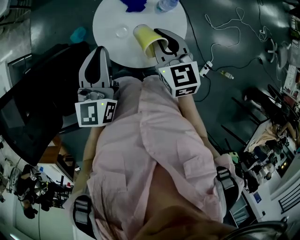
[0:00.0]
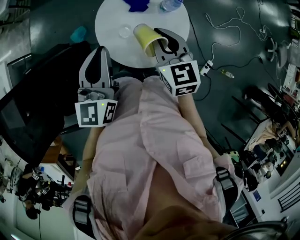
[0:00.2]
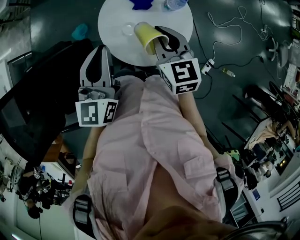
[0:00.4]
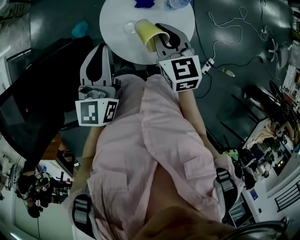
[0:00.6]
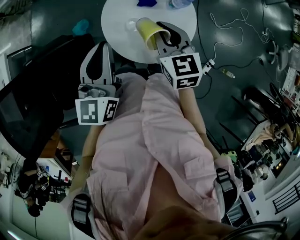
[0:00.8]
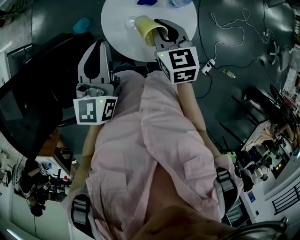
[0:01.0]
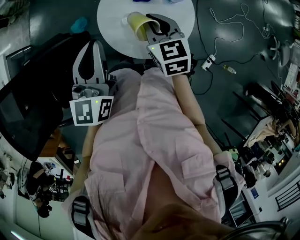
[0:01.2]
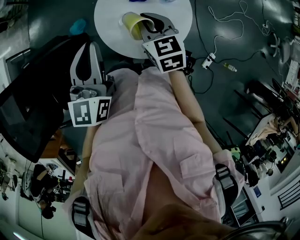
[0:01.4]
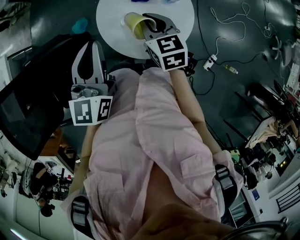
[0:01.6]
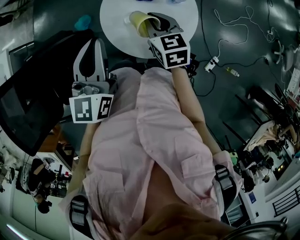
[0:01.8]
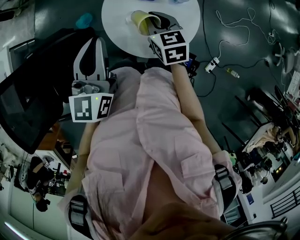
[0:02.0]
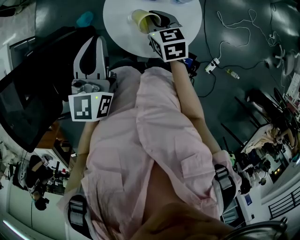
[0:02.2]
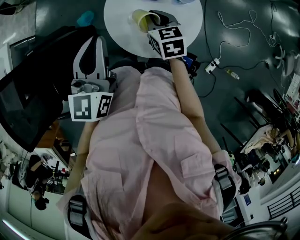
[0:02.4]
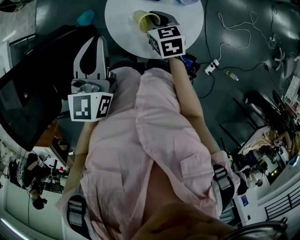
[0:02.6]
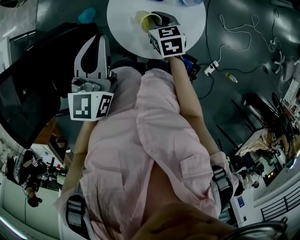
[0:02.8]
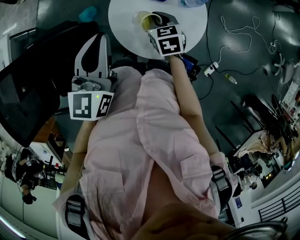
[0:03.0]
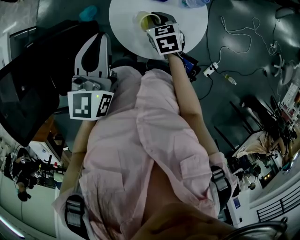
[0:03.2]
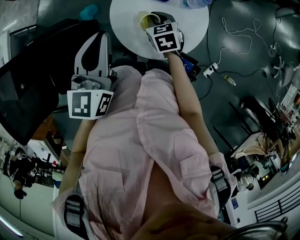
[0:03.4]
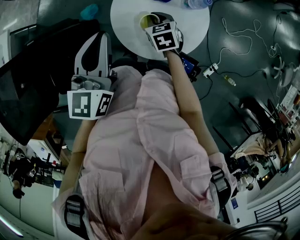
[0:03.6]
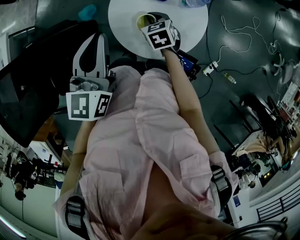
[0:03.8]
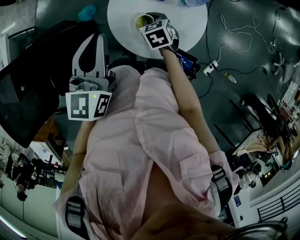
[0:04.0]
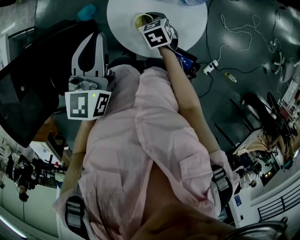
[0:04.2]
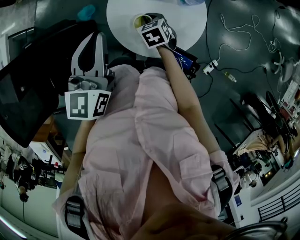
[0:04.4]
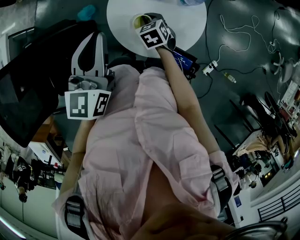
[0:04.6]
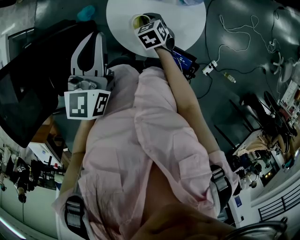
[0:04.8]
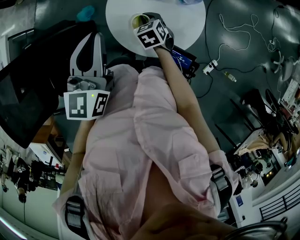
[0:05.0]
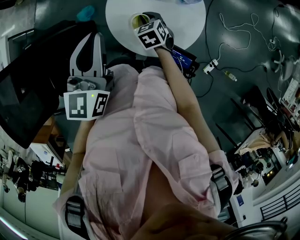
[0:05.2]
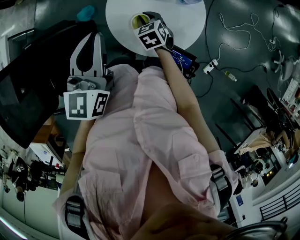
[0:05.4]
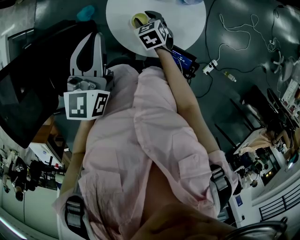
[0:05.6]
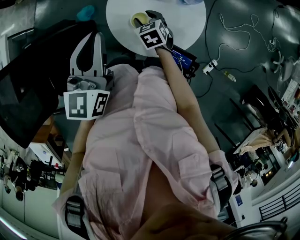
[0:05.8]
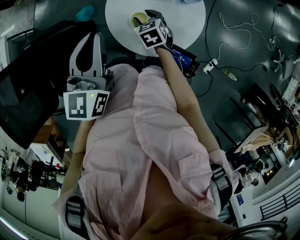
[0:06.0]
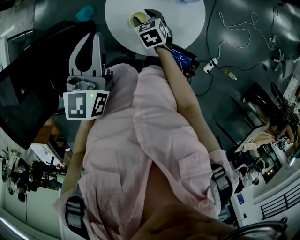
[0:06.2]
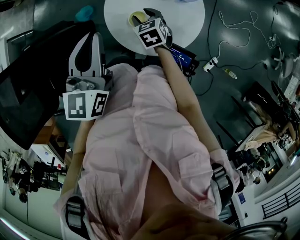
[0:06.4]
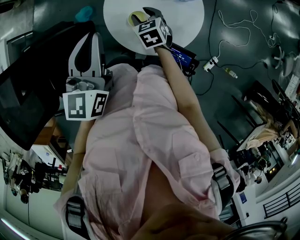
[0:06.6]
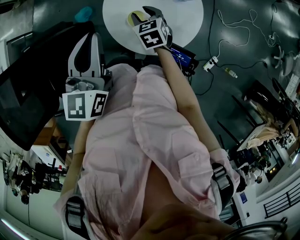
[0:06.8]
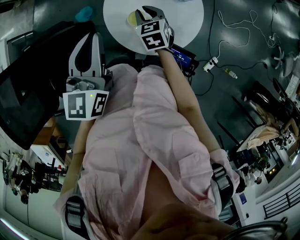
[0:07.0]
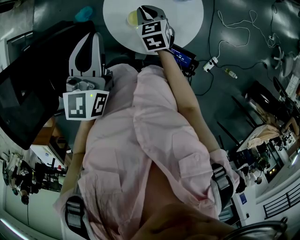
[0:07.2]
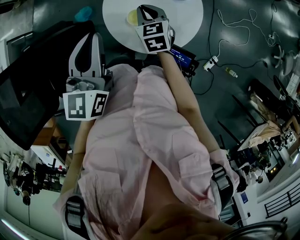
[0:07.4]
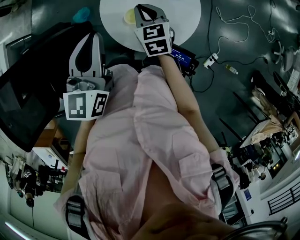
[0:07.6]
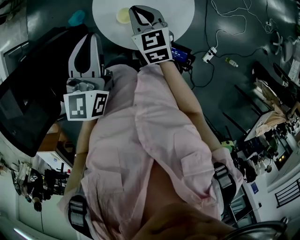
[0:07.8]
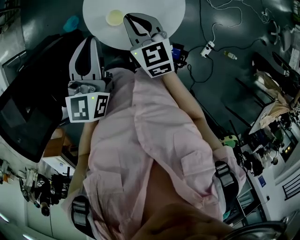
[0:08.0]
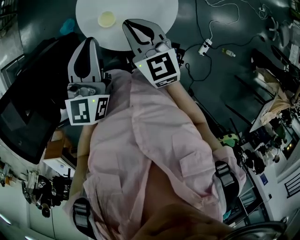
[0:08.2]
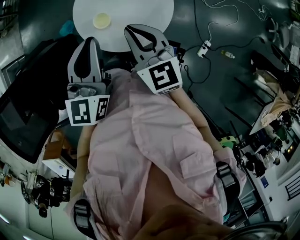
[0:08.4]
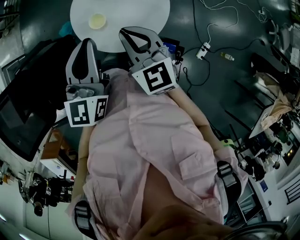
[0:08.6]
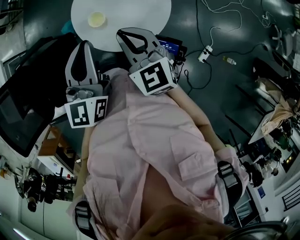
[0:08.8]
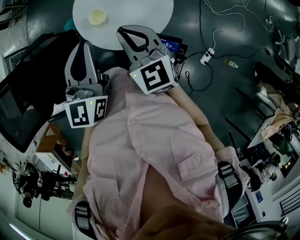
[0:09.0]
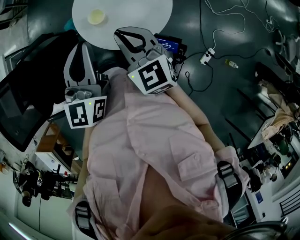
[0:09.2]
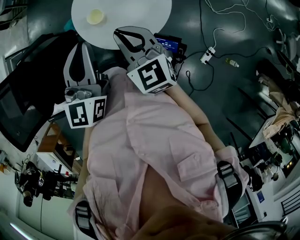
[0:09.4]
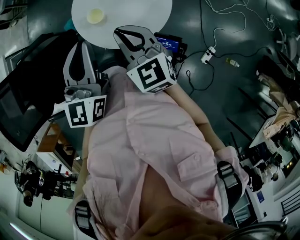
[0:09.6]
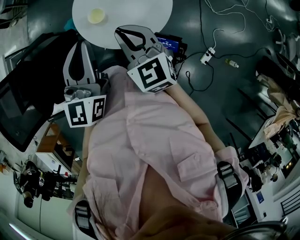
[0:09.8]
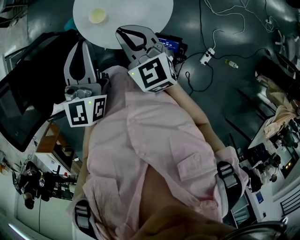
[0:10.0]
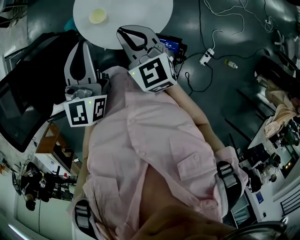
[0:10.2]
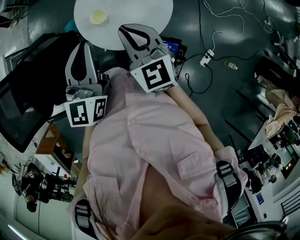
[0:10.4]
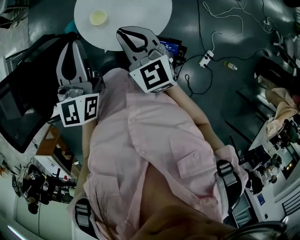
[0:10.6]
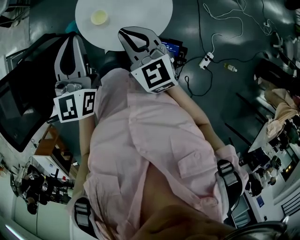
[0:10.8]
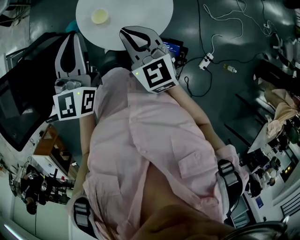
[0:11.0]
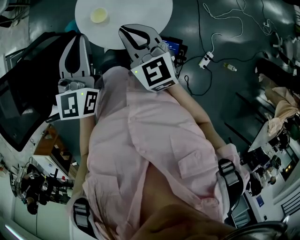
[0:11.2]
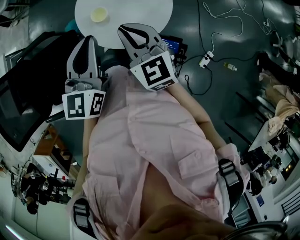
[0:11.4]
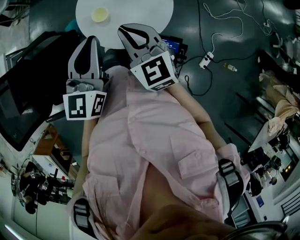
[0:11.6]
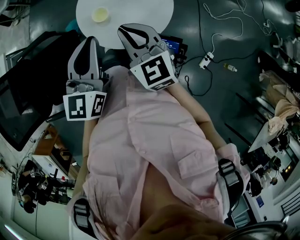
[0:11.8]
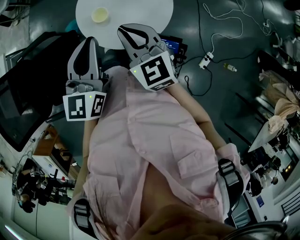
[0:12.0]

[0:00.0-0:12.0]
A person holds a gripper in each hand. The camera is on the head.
0:00.0 to 0:01.6: The right gripper is displaced downward by some 5 cm.
0:01.6 to 0:03.0: The right gripper moves downward, about 10 cm.
0:03.0 to 0:04.4: The right gripper travels downward by approximately 5 cm.
0:04.4 to 0:06.0: The right gripper opens up.
0:06.0 to 0:07.6: The right gripper moves upward, roughly 10 cm, swivels about 20 degrees, and closes.
0:07.6 to 0:09.0: The left gripper moves to the right and backward, about 15 cm. Meanwhile the right gripper heads backward, upward and to the right, covering approximately 20 cm.
0:09.0 to 0:10.4: Both grippers stay put.
0:10.4 to 0:12.0: There are only small adjustments of the grippers.

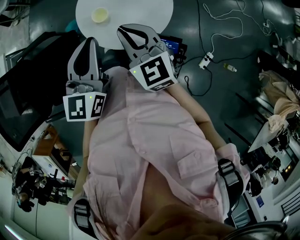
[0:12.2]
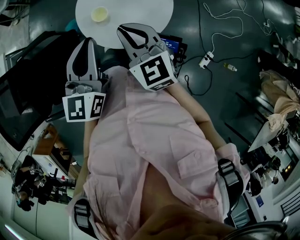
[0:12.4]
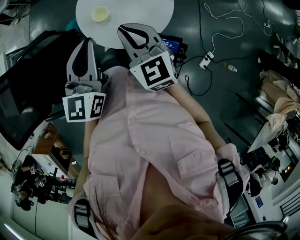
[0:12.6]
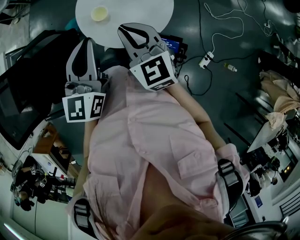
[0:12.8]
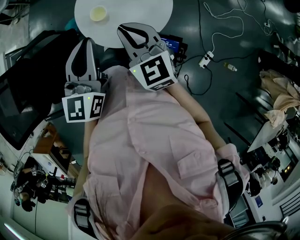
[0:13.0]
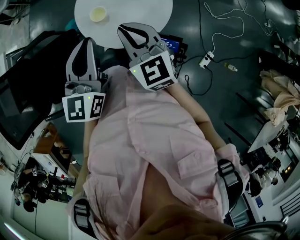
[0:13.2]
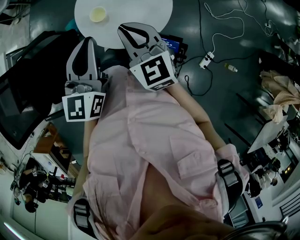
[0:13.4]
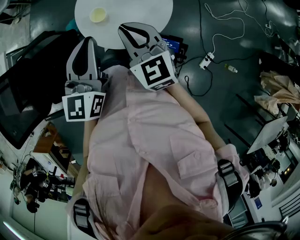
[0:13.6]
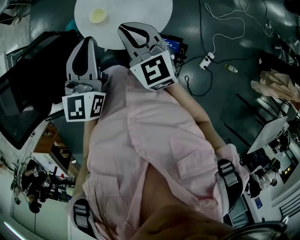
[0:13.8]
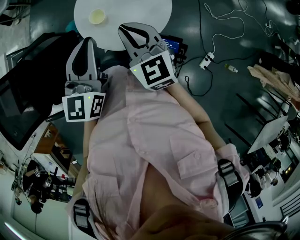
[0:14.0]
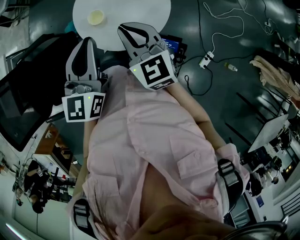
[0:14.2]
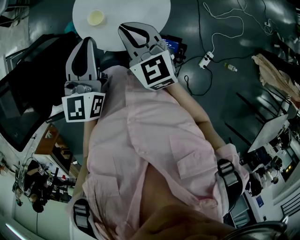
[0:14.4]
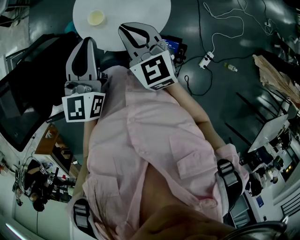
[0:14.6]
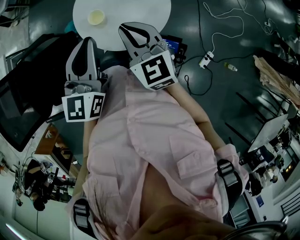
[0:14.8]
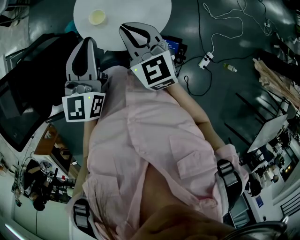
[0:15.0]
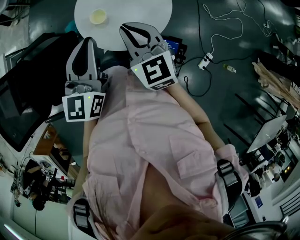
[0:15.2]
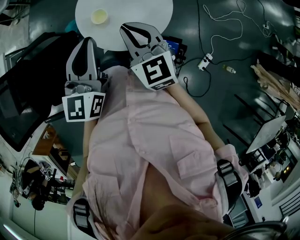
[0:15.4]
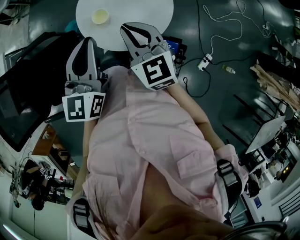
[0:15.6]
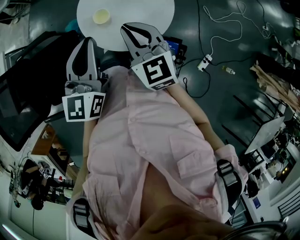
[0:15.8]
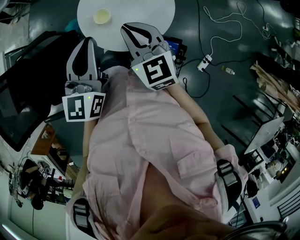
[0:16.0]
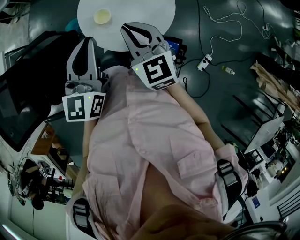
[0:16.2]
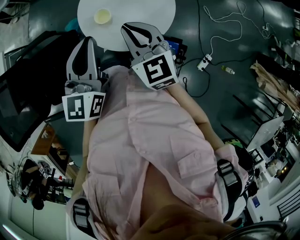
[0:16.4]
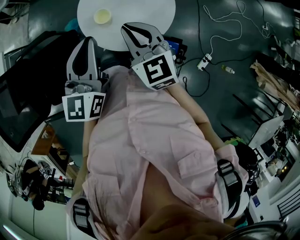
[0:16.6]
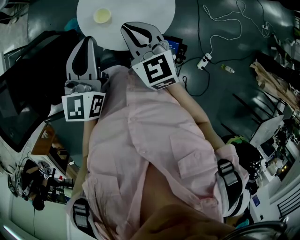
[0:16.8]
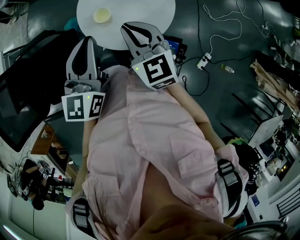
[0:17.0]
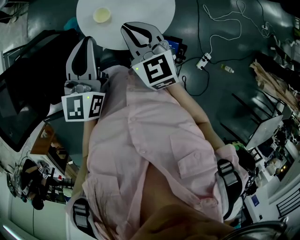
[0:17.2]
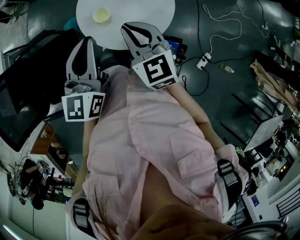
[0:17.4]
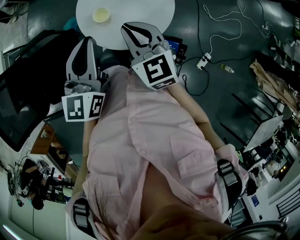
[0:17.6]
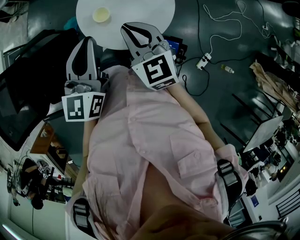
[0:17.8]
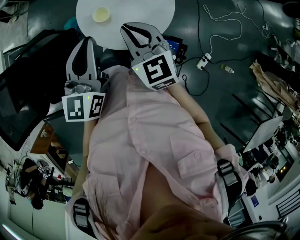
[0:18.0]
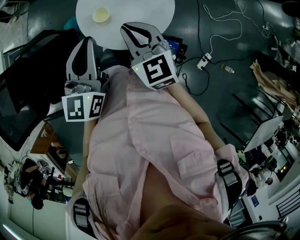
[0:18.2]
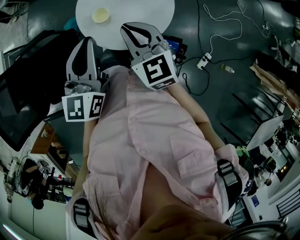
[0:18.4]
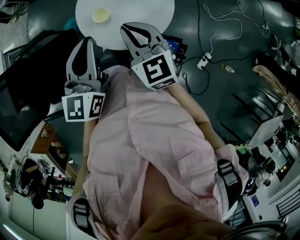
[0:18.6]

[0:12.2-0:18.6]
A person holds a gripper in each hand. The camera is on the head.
0:12.2 to 0:13.8: The two grippers keep their place.
0:13.8 to 0:15.4: Both grippers stay about where they are.
0:15.4 to 0:18.6: Both grippers stay about where they are.

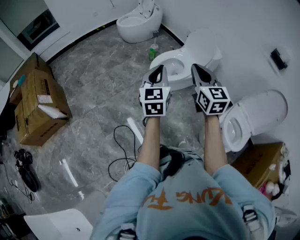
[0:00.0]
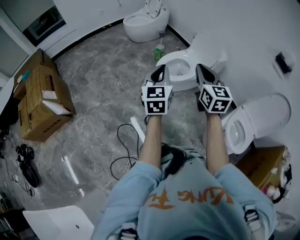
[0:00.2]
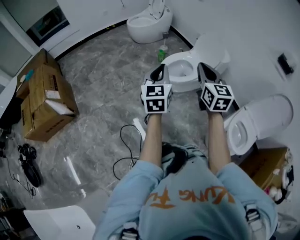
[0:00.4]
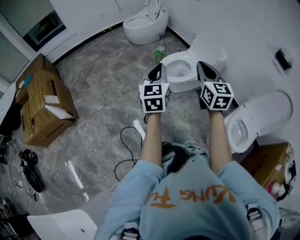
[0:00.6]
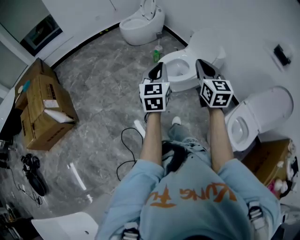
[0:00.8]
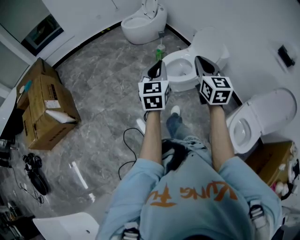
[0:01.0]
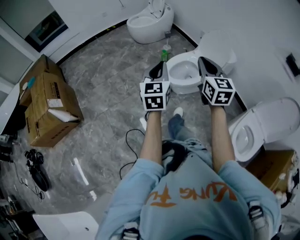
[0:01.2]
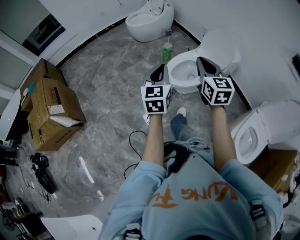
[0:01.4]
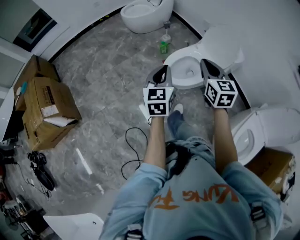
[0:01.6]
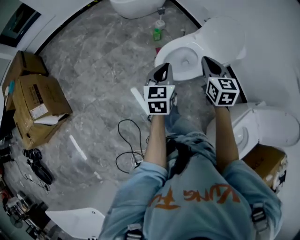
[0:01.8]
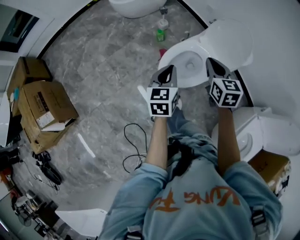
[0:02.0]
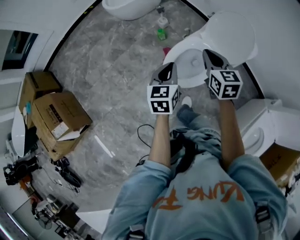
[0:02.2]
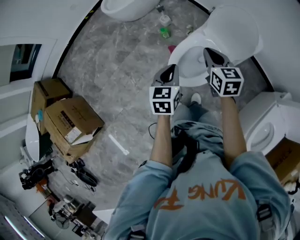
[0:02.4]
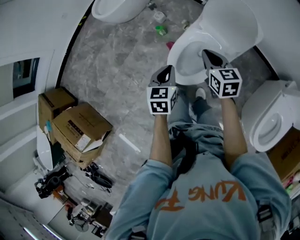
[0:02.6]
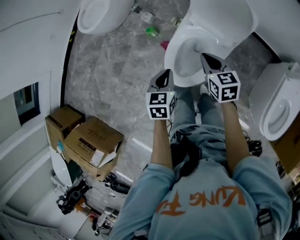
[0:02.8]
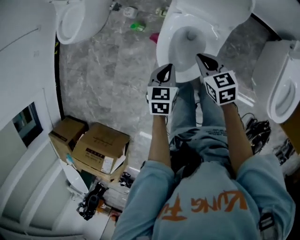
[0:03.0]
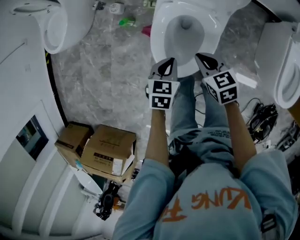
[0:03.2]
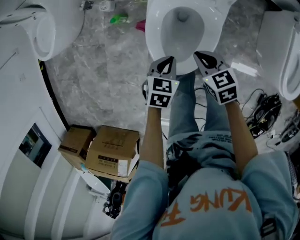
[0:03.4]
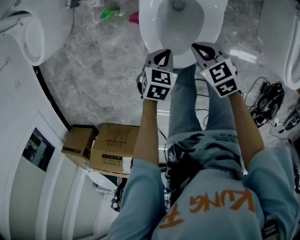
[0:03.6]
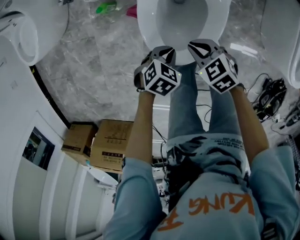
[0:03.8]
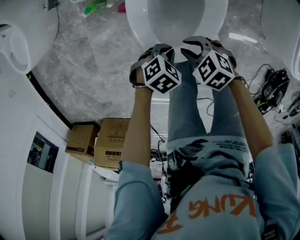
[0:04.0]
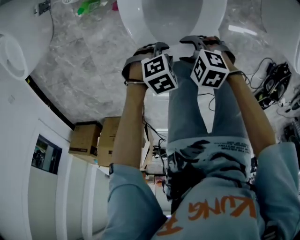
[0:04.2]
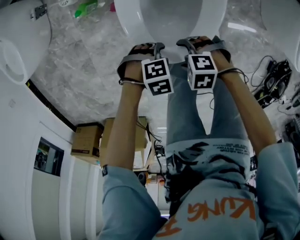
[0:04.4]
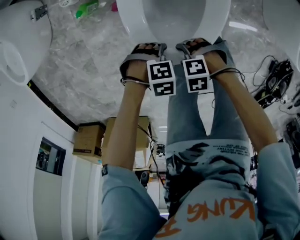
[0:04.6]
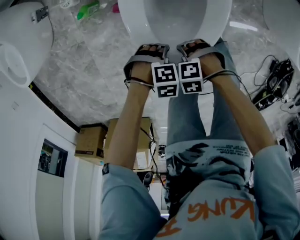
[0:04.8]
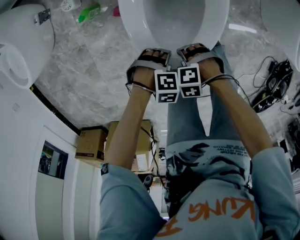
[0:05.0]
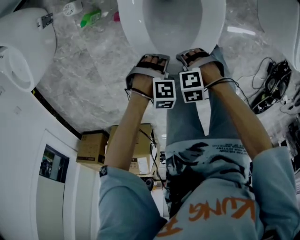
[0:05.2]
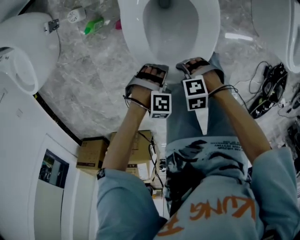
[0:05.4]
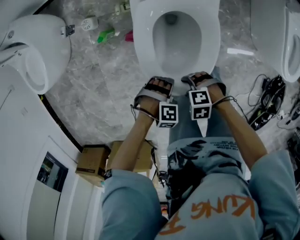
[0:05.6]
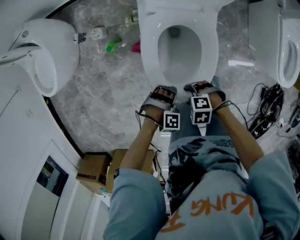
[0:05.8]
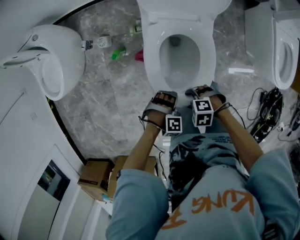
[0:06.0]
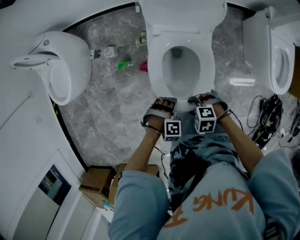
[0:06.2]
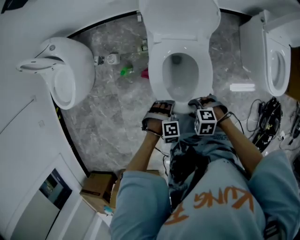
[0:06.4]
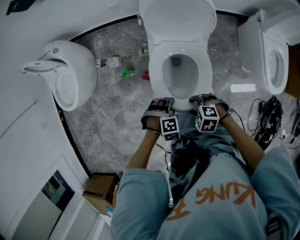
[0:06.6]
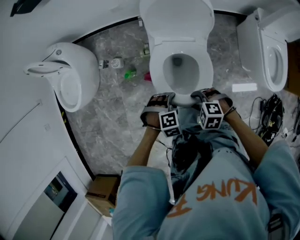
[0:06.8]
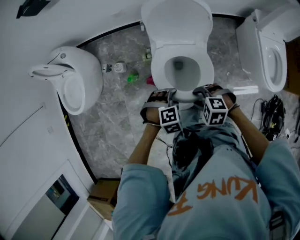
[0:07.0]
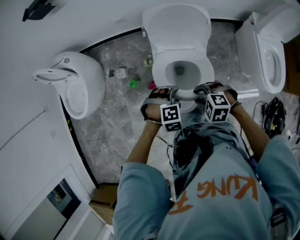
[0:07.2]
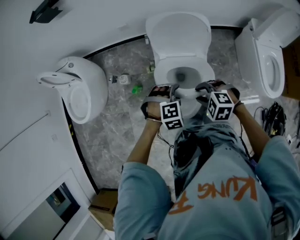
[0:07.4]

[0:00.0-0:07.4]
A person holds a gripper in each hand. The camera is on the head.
0:00.0 to 0:01.4: The grippers both shift forward by roughly 15 cm.
0:01.4 to 0:03.0: The left gripper changes place by some 50 cm, and points its fingers some 40 degrees further downward; the right gripper goes about 35 cm downward, and tilts its fingers approximately 30 degrees downward.
0:03.0 to 0:04.4: The two grippers go about 30 cm downward. The left gripper turns by some 100 degrees, and opens up. The right gripper changes its angle by some 60 degrees, and opens its fingers.
0:04.4 to 0:06.0: The two grippers go approximately 15 cm upward. The left gripper rotates roughly 40 degrees.
0:06.0 to 0:07.4: Both grippers travel together upward, roughly 25 cm. The right gripper changes its angle by approximately 30 degrees, and closes, while the left gripper turns by about 20 degrees.
